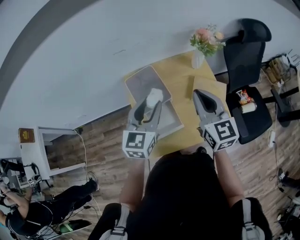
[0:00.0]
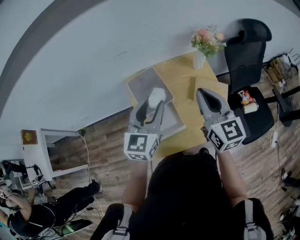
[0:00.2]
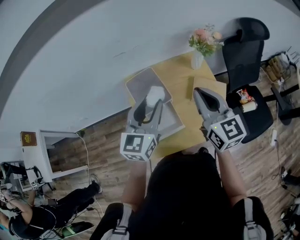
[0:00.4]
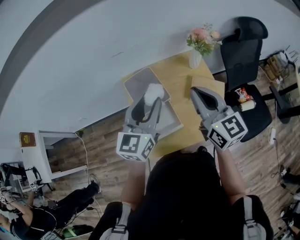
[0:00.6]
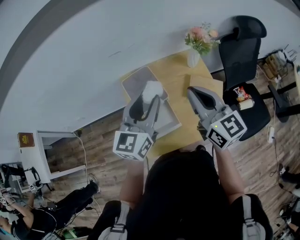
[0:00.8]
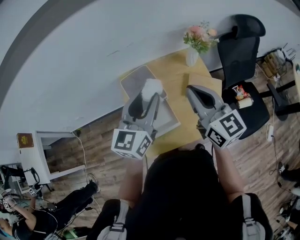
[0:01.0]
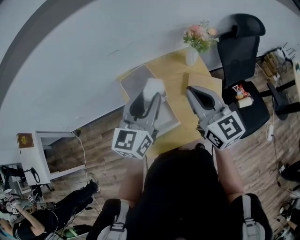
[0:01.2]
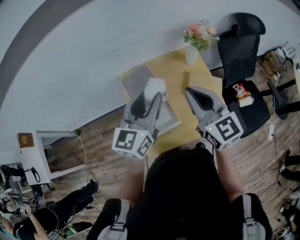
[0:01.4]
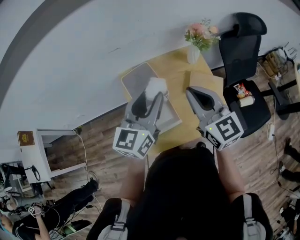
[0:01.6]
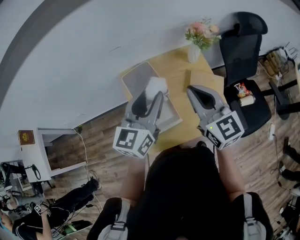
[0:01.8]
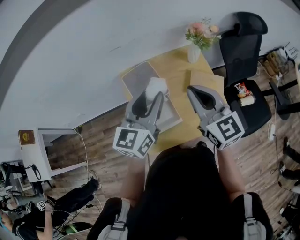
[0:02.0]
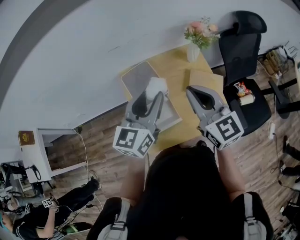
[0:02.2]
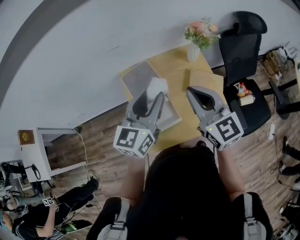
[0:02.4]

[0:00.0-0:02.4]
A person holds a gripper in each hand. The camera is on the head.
0:00.0 to 0:01.2: The left gripper is displaced upward by roughly 5 cm.
0:01.2 to 0:02.4: There are only small adjustments of the grippers.

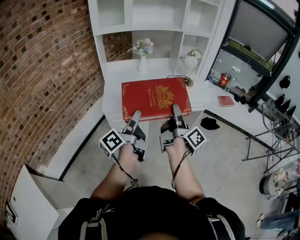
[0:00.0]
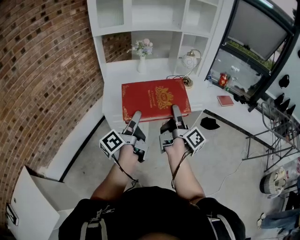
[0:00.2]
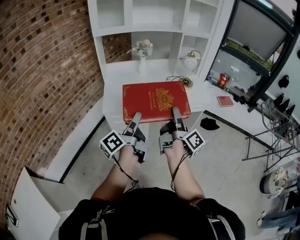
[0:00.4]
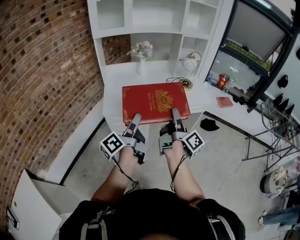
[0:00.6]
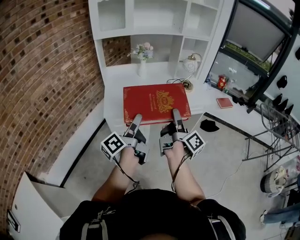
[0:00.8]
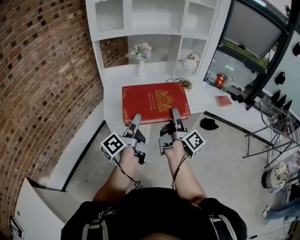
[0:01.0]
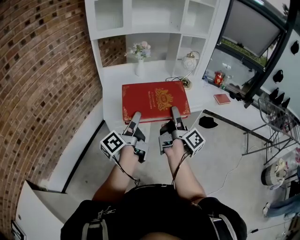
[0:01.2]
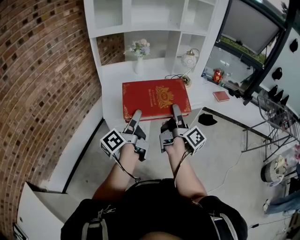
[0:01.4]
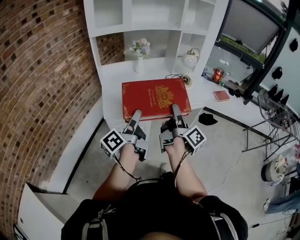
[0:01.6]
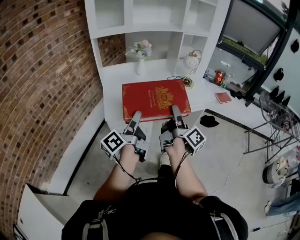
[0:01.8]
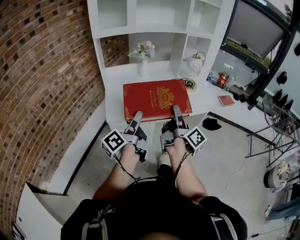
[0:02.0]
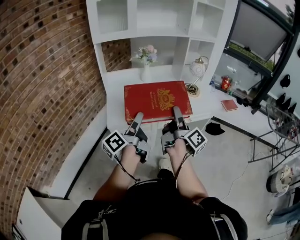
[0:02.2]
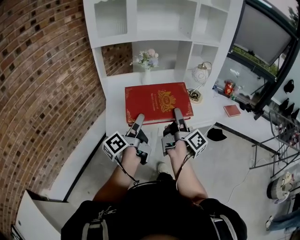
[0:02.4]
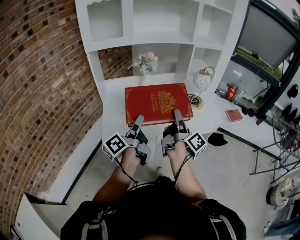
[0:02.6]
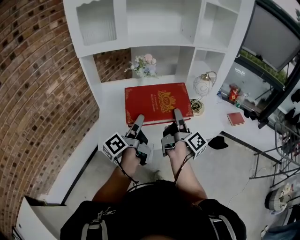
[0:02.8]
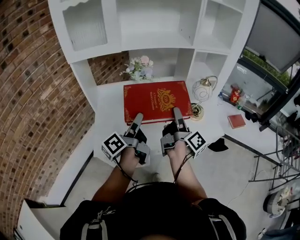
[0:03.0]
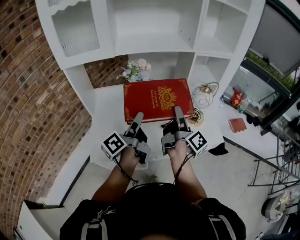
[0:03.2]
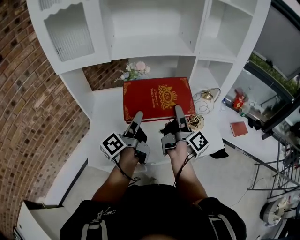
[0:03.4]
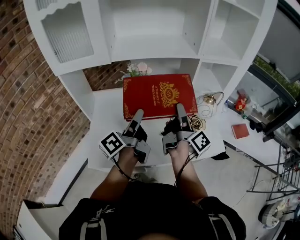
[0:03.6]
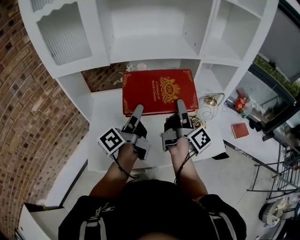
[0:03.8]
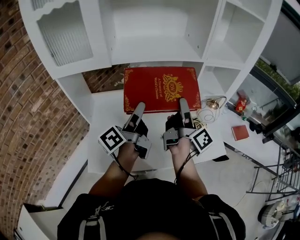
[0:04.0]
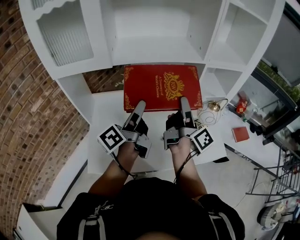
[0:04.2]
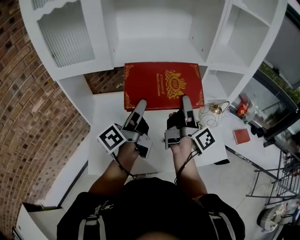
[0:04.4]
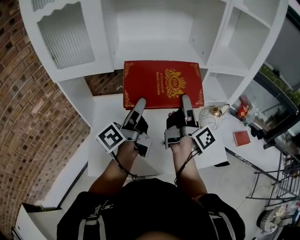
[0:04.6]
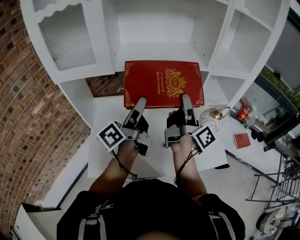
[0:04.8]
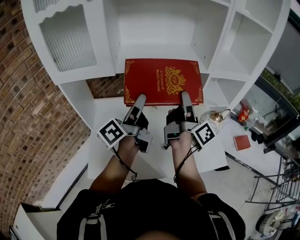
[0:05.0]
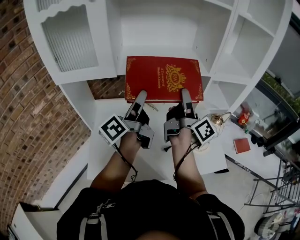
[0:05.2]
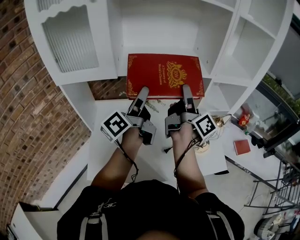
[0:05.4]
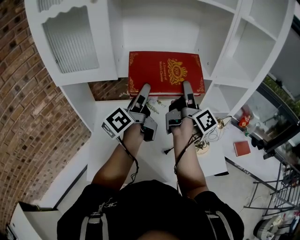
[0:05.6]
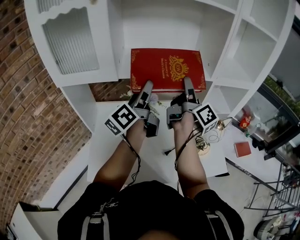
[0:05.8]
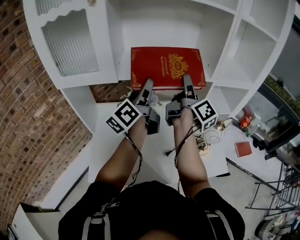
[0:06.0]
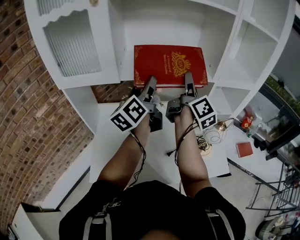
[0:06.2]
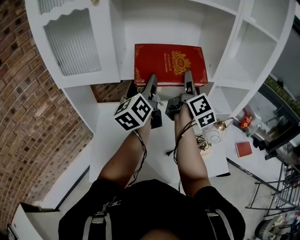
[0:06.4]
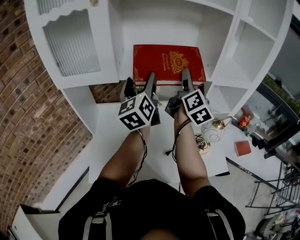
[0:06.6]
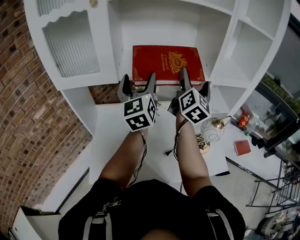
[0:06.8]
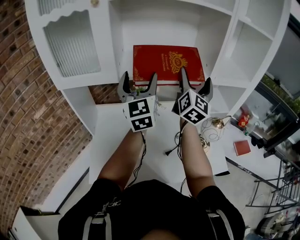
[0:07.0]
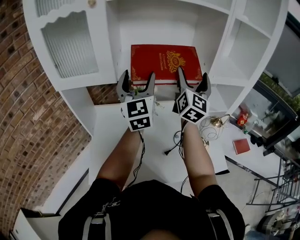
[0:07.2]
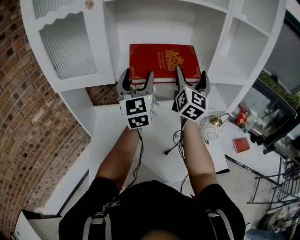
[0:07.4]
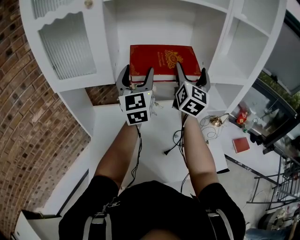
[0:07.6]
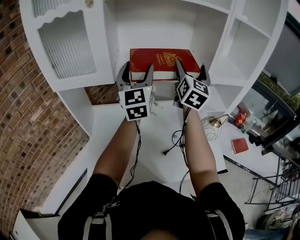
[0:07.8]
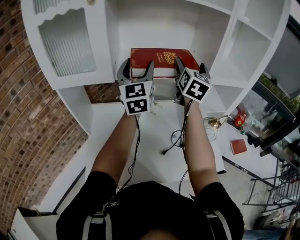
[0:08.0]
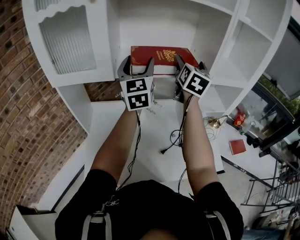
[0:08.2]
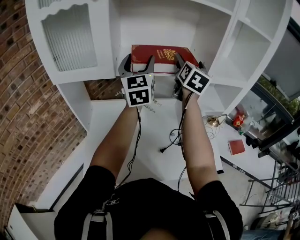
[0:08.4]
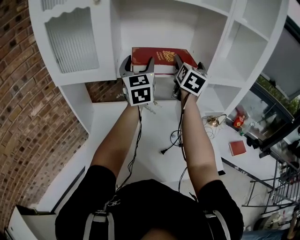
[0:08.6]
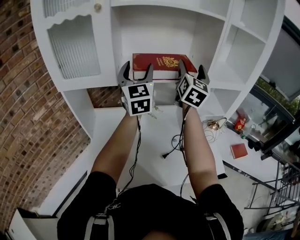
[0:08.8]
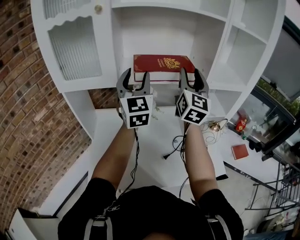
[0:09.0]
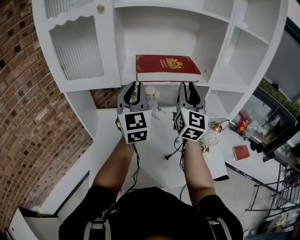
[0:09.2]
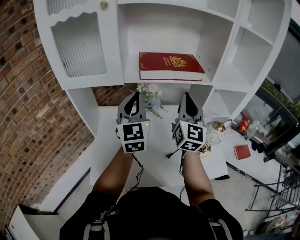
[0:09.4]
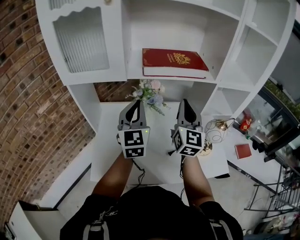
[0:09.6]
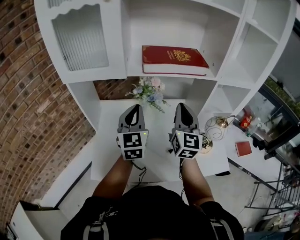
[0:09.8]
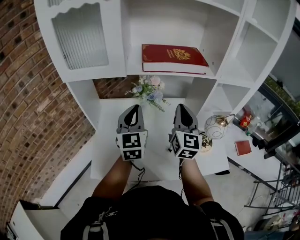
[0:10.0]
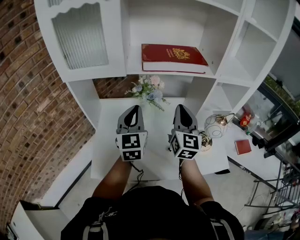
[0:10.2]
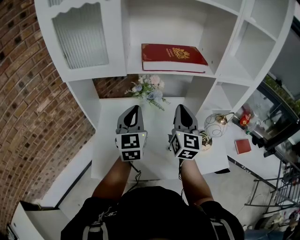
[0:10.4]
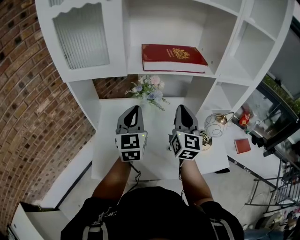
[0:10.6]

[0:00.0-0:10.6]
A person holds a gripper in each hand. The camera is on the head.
0:00.0 to 0:01.6: The two grippers go roughly 10 cm to the left.
0:01.6 to 0:03.0: The two grippers go roughly 35 cm forward.
0:03.0 to 0:04.6: Both grippers move forward and upward, some 20 cm.
0:04.6 to 0:06.0: The right gripper travels forward and upward by roughly 15 cm, while the left gripper is displaced forward by roughly 10 cm, and swivels some 20 degrees.
0:06.0 to 0:07.6: The two grippers go some 5 cm upward. The left gripper rotates around the line of its fingers by some 60 degrees, clockwise from behind, while the right gripper twists roughly 70 degrees counterclockwise, seen from behind.
0:07.6 to 0:09.0: The right gripper closes.
0:09.0 to 0:10.6: Both grippers travel together downward and backward, about 20 cm. The right gripper closes its fingers, while the left gripper closes its fingers.

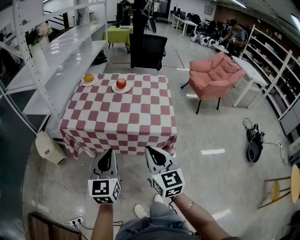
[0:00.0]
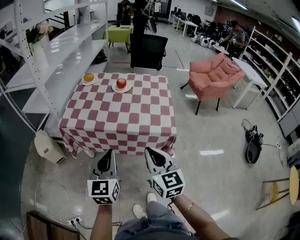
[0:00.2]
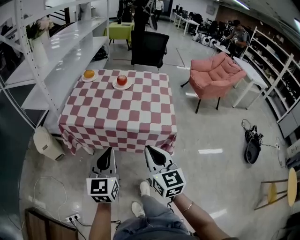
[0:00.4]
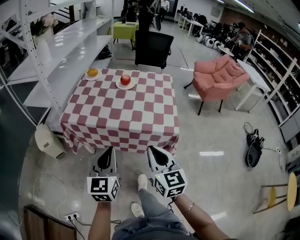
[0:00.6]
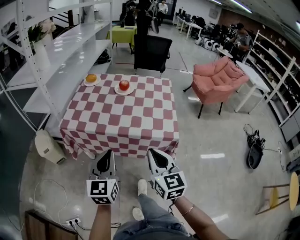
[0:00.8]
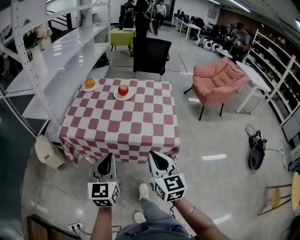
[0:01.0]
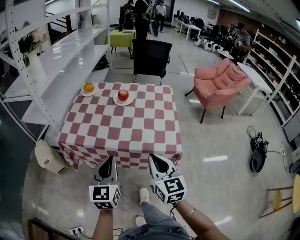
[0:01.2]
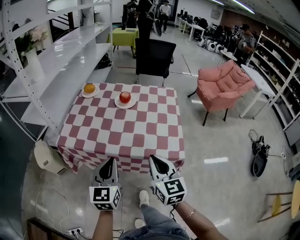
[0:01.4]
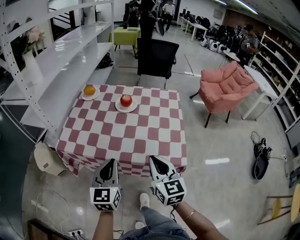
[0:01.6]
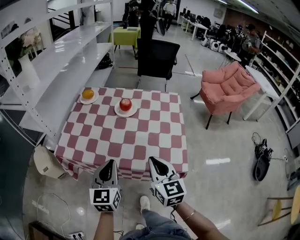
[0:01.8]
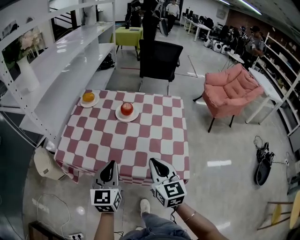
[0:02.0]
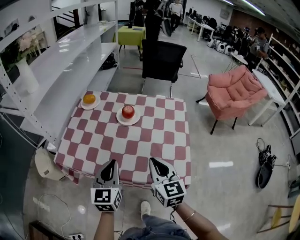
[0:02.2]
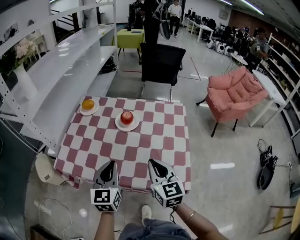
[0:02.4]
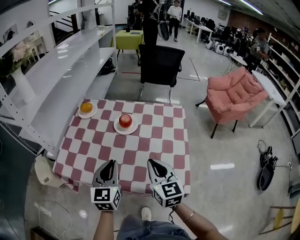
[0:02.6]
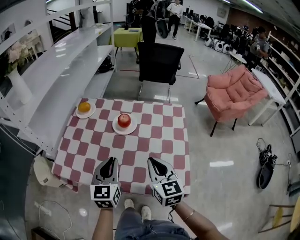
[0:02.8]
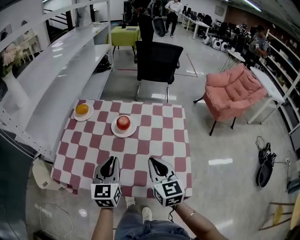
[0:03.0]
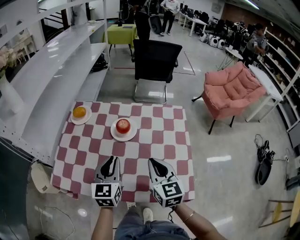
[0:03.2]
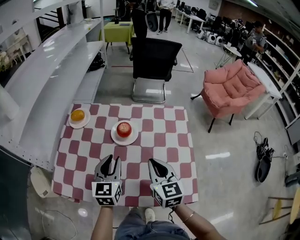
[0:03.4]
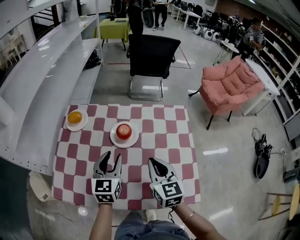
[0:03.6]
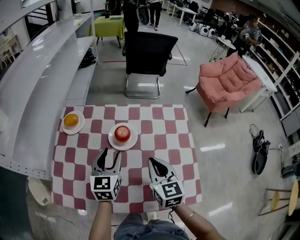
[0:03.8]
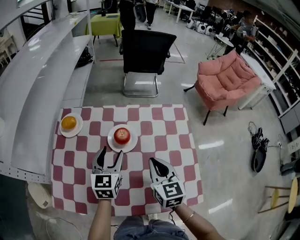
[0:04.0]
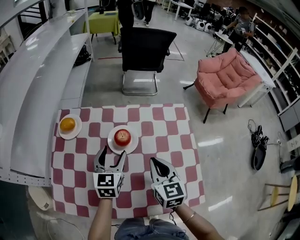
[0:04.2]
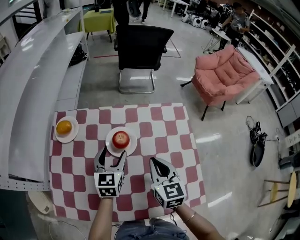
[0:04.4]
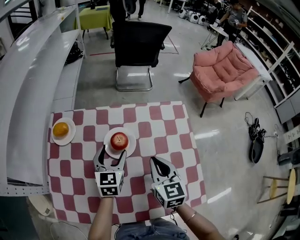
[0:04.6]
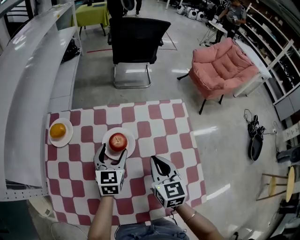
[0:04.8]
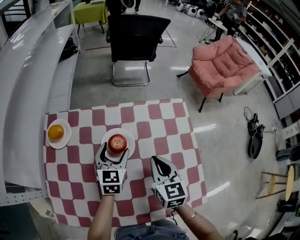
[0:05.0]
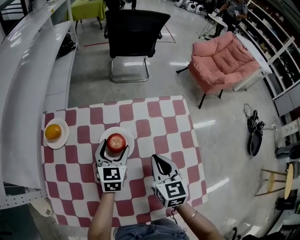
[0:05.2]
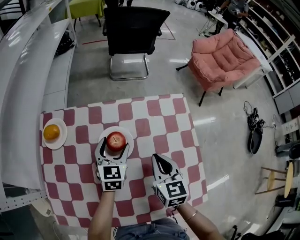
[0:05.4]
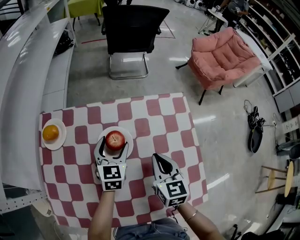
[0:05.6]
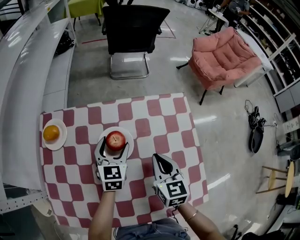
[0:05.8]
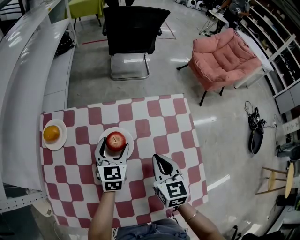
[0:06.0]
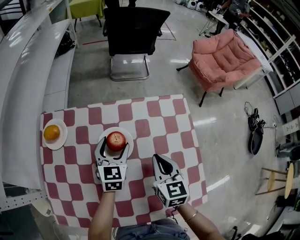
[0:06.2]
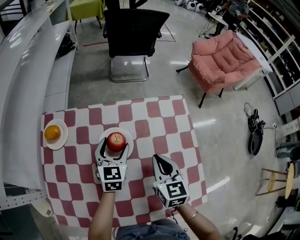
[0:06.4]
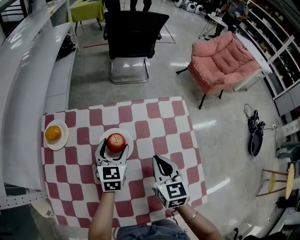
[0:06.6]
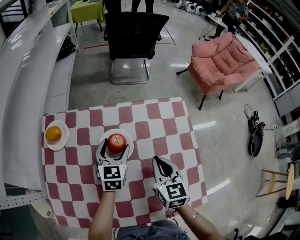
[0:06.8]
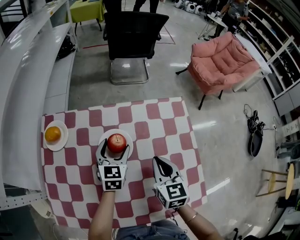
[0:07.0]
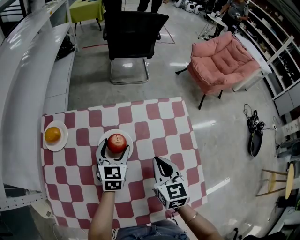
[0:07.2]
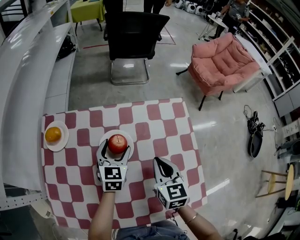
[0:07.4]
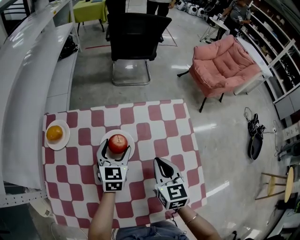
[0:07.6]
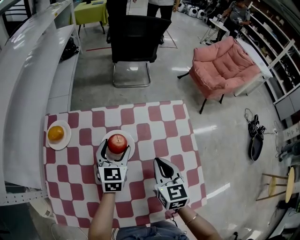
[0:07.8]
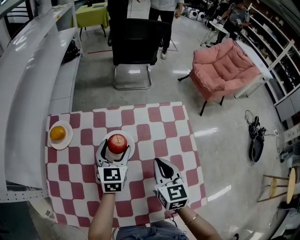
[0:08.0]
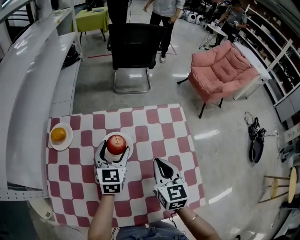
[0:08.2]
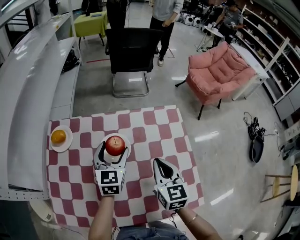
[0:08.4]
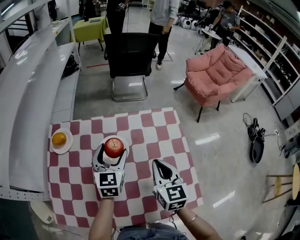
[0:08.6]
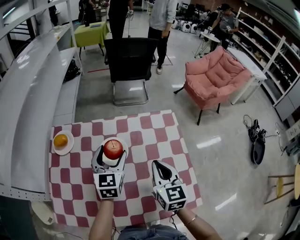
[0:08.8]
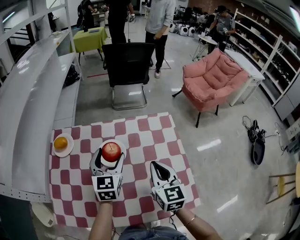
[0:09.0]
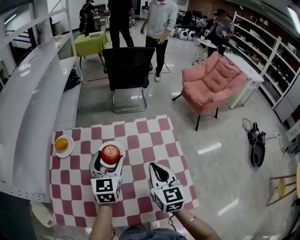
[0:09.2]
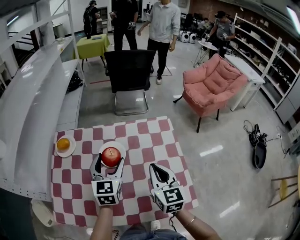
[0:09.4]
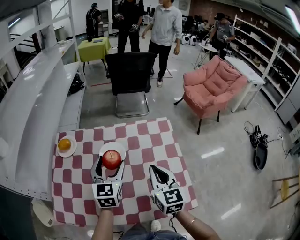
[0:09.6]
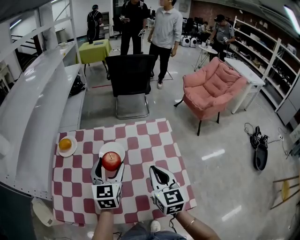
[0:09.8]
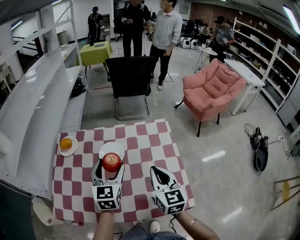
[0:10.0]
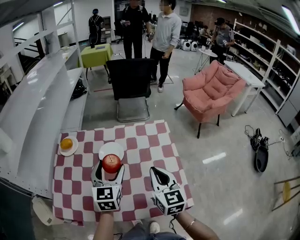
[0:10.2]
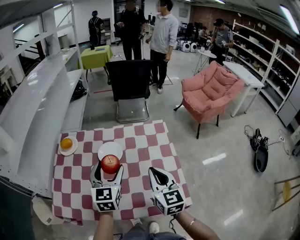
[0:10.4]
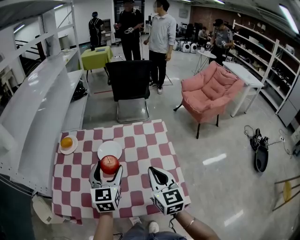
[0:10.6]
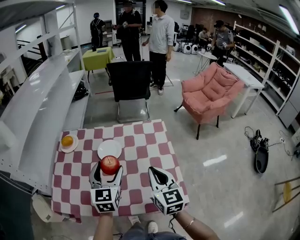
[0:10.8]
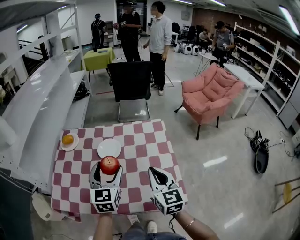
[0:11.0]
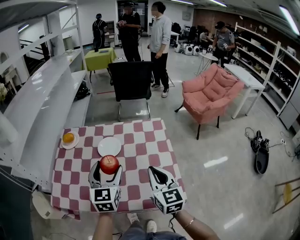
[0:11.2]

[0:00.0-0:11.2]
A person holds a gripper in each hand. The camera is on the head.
0:00.0 to 0:01.6: The two grippers go approximately 15 cm forward.
0:01.6 to 0:03.2: The two grippers go some 25 cm forward.
0:03.2 to 0:04.8: The right gripper travels forward and downward by roughly 15 cm. Meanwhile the left gripper travels forward and downward by about 25 cm, and opens.
0:04.8 to 0:08.0: The grippers stay close to where they were, moving slightly.
0:08.0 to 0:09.6: Both grippers travel together upward and backward, about 15 cm.
0:09.6 to 0:11.2: Both grippers move backward, about 10 cm.
